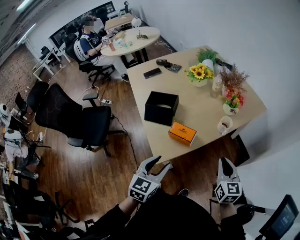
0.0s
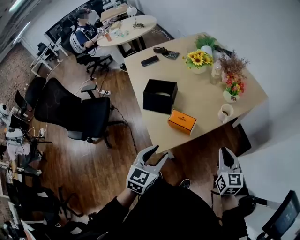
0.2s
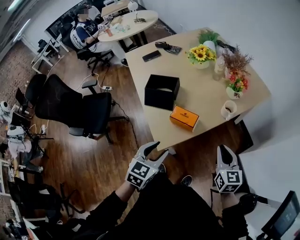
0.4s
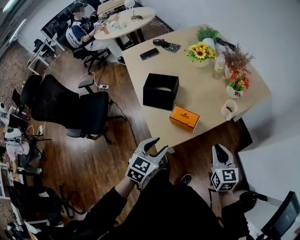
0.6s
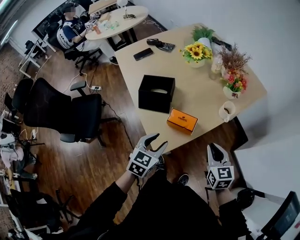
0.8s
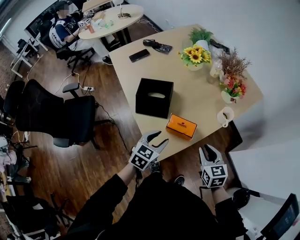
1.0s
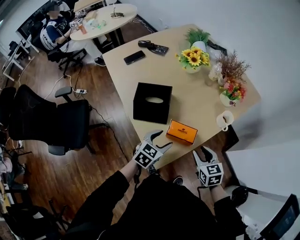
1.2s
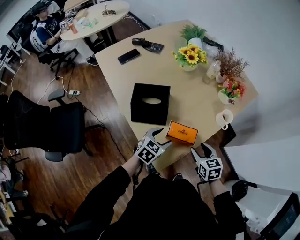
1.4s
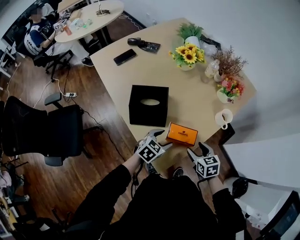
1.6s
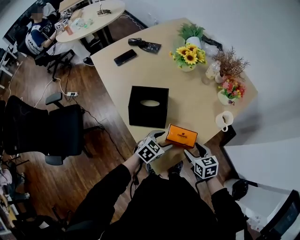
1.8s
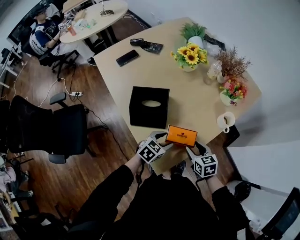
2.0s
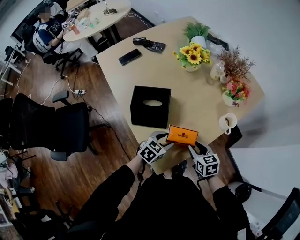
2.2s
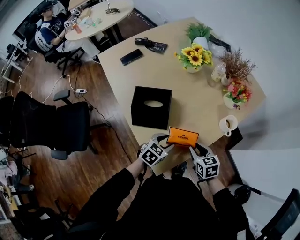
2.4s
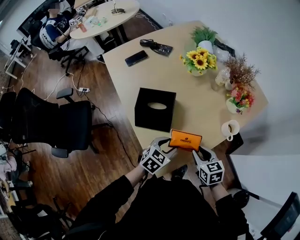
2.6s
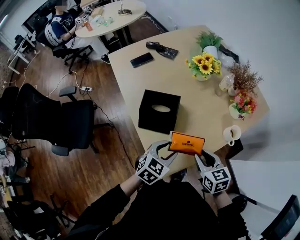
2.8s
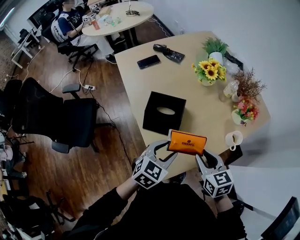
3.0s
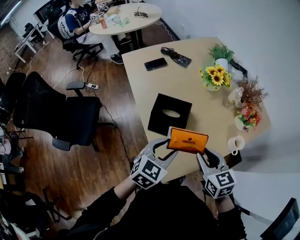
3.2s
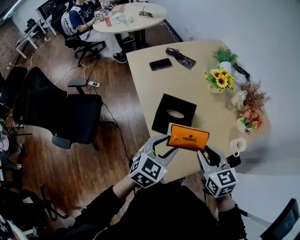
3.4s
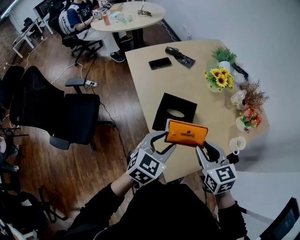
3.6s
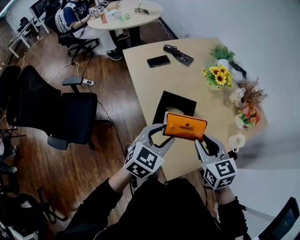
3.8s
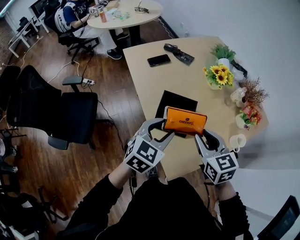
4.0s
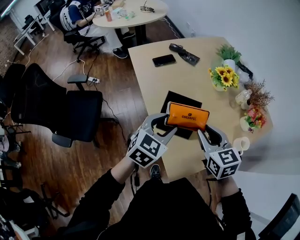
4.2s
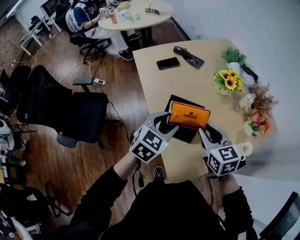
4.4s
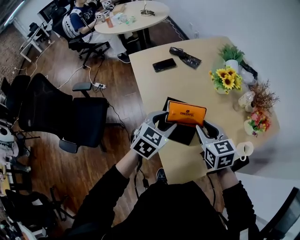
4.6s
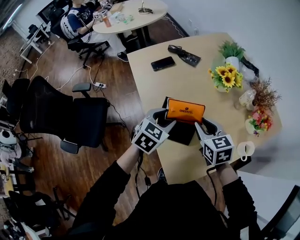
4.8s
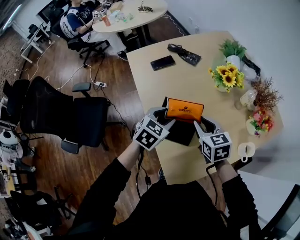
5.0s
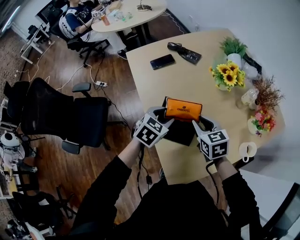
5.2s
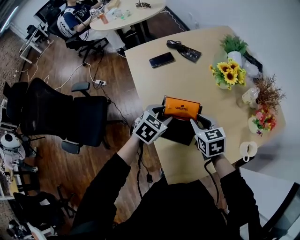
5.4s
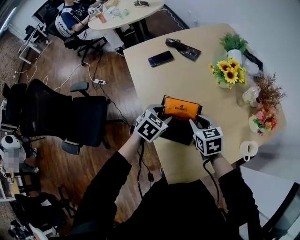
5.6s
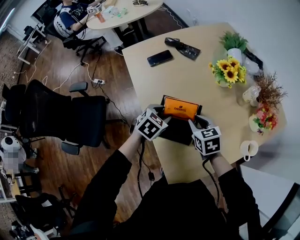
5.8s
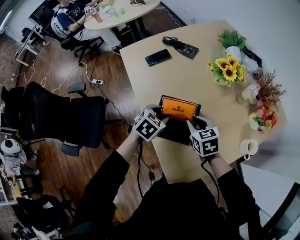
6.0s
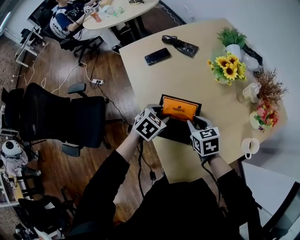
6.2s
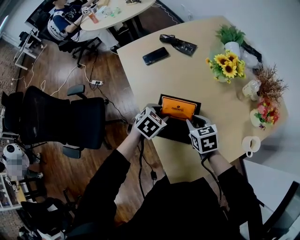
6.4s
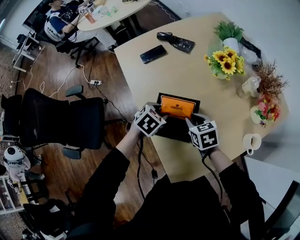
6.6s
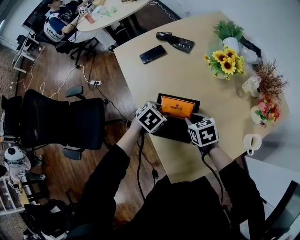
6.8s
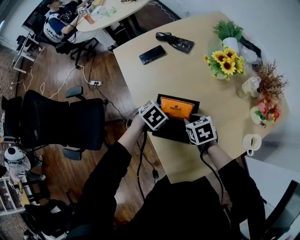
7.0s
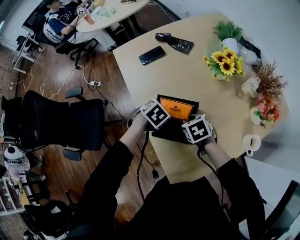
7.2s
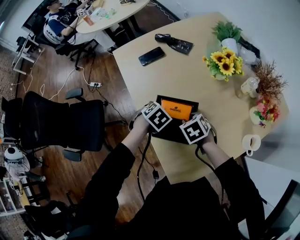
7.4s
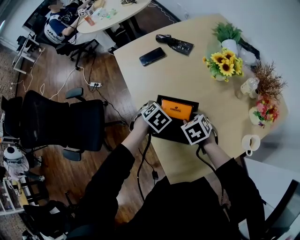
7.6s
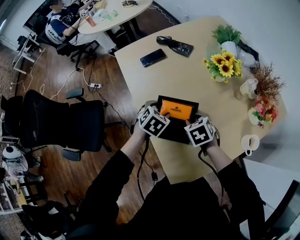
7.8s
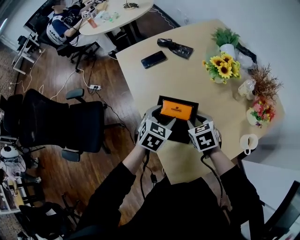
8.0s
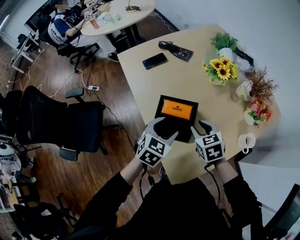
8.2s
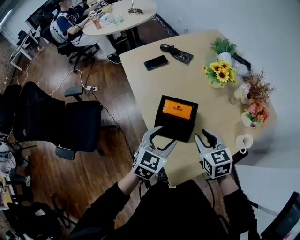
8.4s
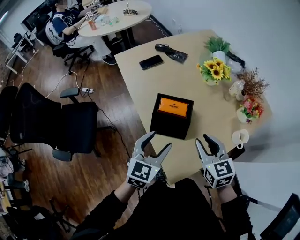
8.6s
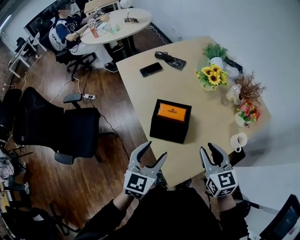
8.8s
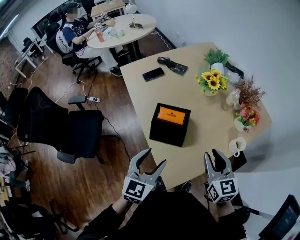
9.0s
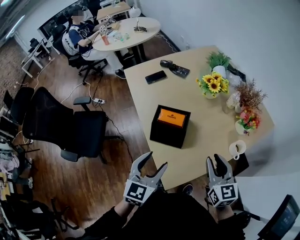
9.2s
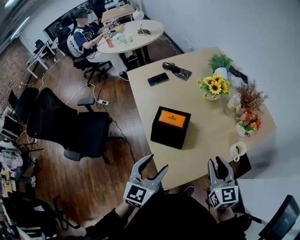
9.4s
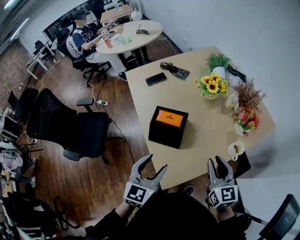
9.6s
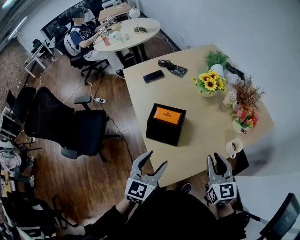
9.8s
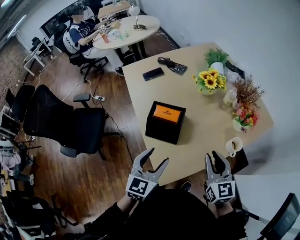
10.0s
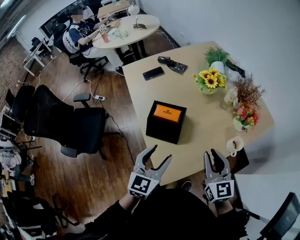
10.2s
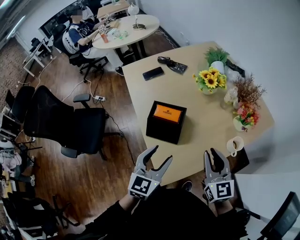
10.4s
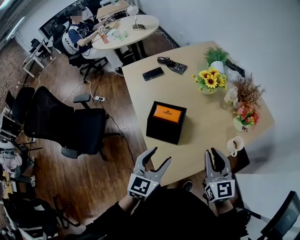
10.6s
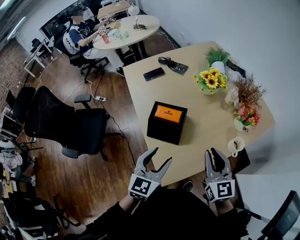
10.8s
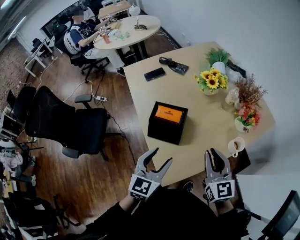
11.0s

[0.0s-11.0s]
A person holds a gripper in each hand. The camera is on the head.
0.0s to 1.6s: The right gripper is displaced to the left, downward and forward by approximately 25 cm, changes its angle by about 30 degrees, and opens up; the left gripper shifts approximately 30 cm forward and downward, turns by roughly 40 degrees, and opens its fingers.
1.6s to 3.2s: The right gripper moves upward and to the left, roughly 20 cm, rotates approximately 20 degrees, and closes up. Meanwhile the left gripper travels upward by approximately 20 cm, swivels some 20 degrees, and closes its fingers.
3.2s to 4.8s: The grippers both shift forward and to the left by about 15 cm.
4.8s to 6.2s: Both grippers move downward, roughly 10 cm.
6.2s to 7.8s: The right gripper changes its angle by approximately 20 degrees, while the left gripper opens up.
7.8s to 9.4s: The left gripper is displaced backward and upward by approximately 30 cm, and tilts its fingers some 40 degrees upward, while the right gripper moves backward, upward and to the right, some 30 cm, and tips its fingers upward by some 50 degrees.
9.4s to 11.0s: The grippers stay close to where they were, moving slightly.

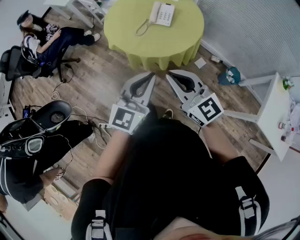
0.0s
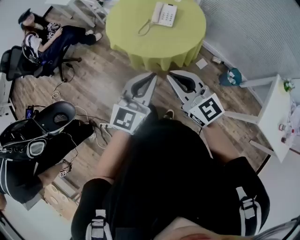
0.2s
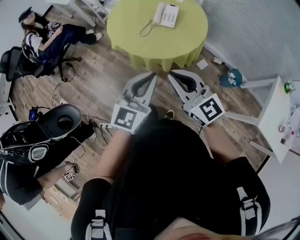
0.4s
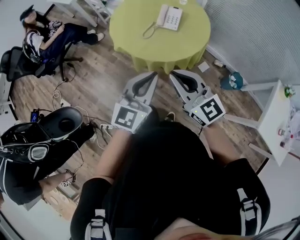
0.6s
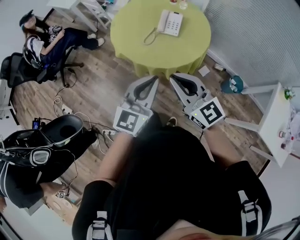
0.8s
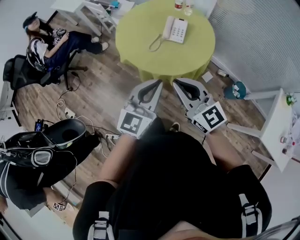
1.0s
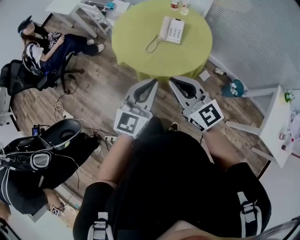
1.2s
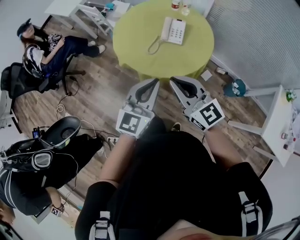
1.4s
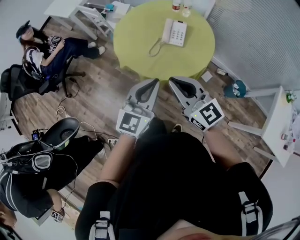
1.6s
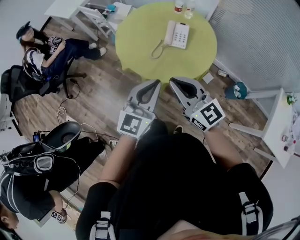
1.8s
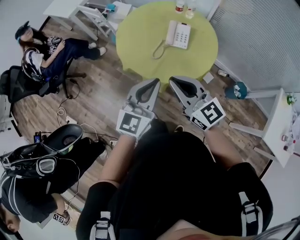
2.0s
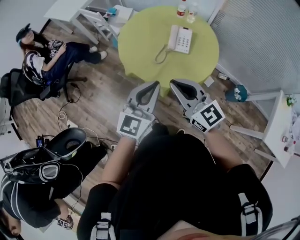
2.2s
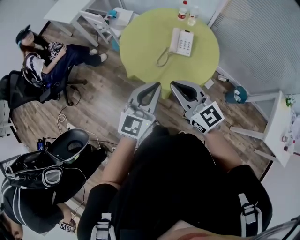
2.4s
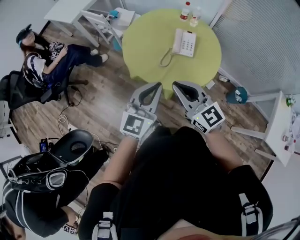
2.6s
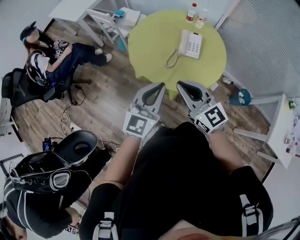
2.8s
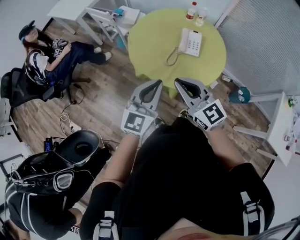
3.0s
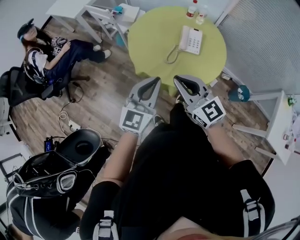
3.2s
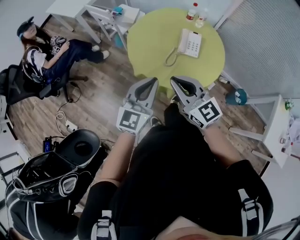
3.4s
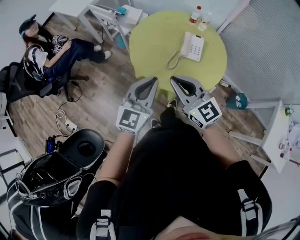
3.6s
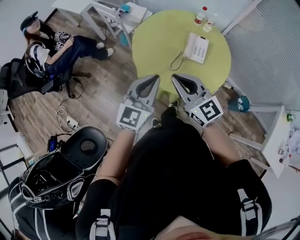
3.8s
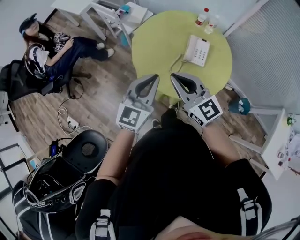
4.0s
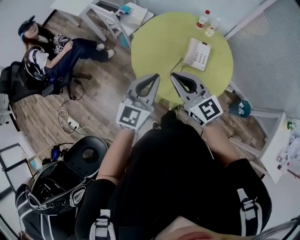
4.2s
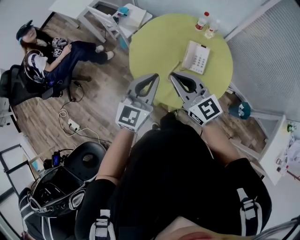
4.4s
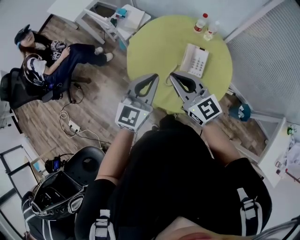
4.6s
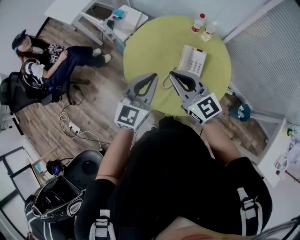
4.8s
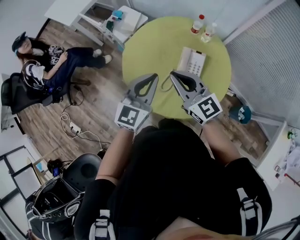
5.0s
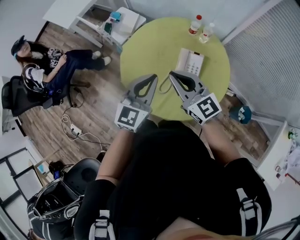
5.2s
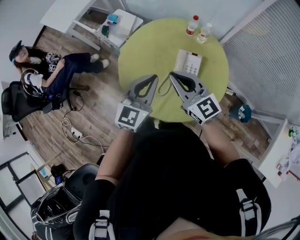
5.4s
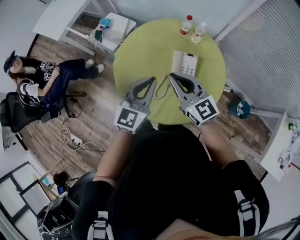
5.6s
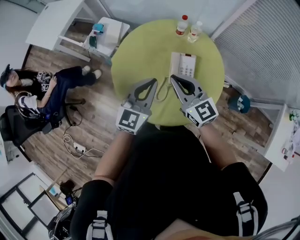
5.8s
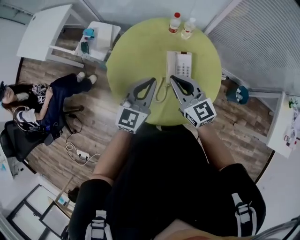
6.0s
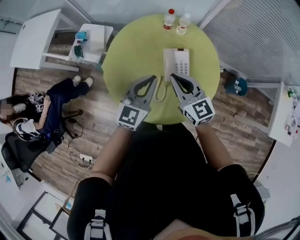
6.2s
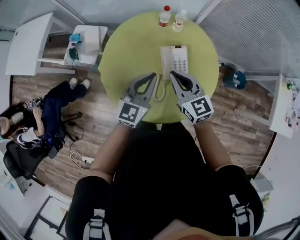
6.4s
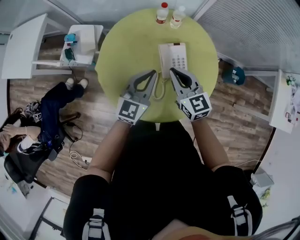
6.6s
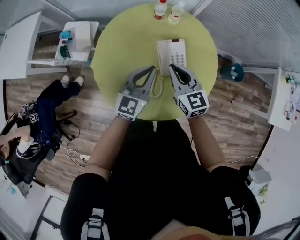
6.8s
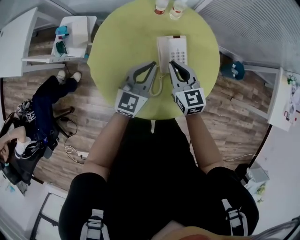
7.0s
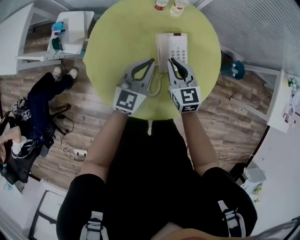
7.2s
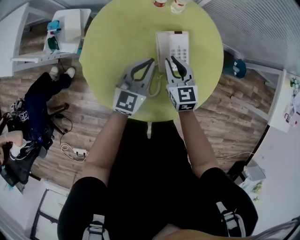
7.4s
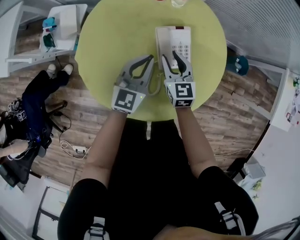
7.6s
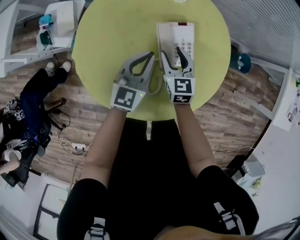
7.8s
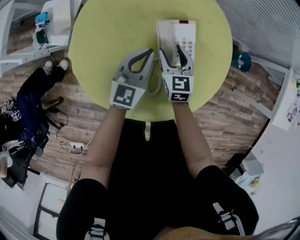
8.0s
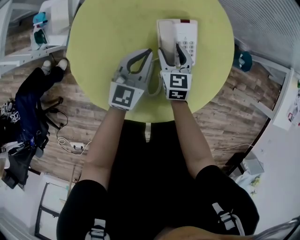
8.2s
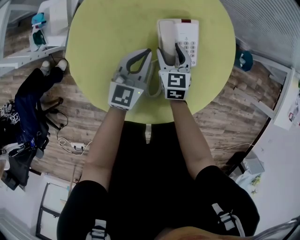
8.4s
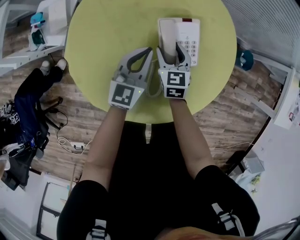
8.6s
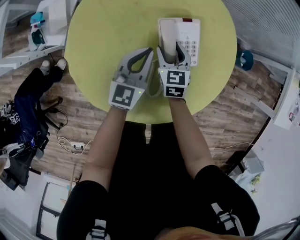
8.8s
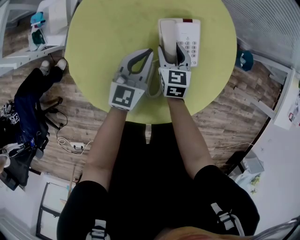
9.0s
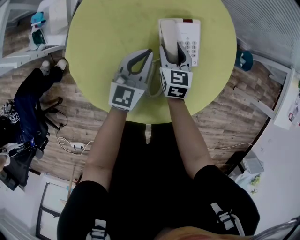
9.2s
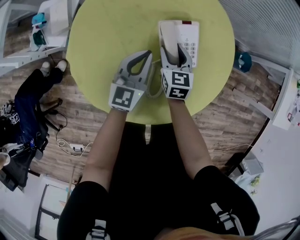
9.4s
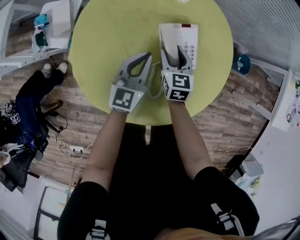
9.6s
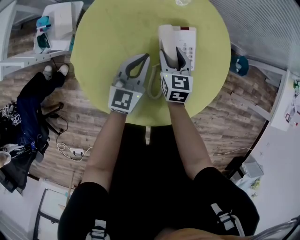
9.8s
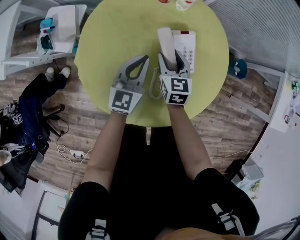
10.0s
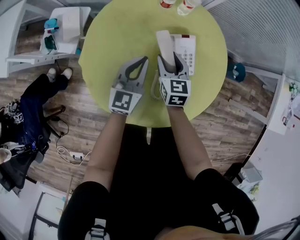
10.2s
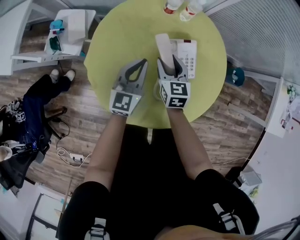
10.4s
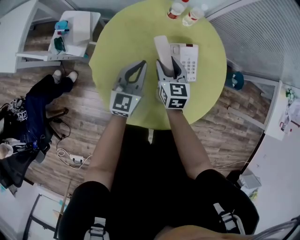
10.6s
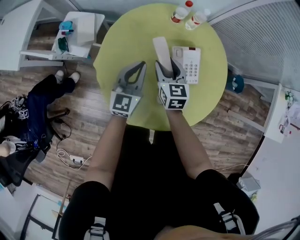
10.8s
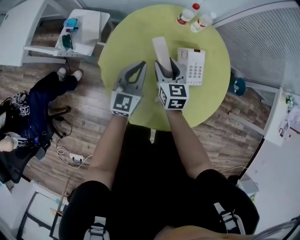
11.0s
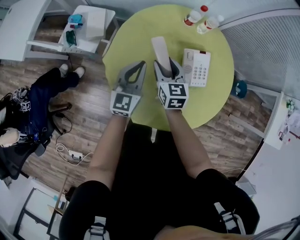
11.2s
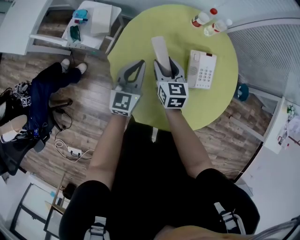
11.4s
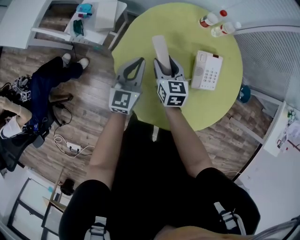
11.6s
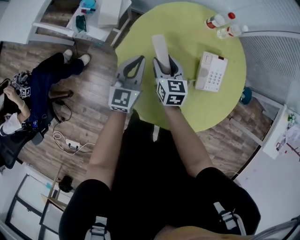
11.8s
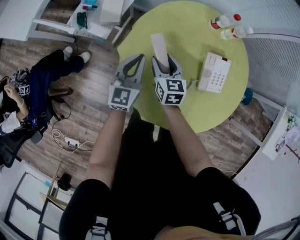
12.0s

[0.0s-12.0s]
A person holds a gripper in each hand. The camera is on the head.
0.0s to 1.6s: Both grippers move forward and to the left, roughly 15 cm.
1.6s to 3.0s: The grippers both shift to the left and forward by about 15 cm.
3.0s to 4.4s: The grippers both shift forward by some 15 cm.
4.4s to 6.0s: The right gripper shifts some 20 cm forward, to the right and downward, and turns by some 20 degrees. The left gripper moves forward and to the right, about 20 cm.
6.0s to 7.6s: The left gripper moves downward and forward, some 20 cm; the right gripper travels downward by approximately 25 cm, rotates roughly 30 degrees, and opens its fingers.
7.6s to 9.0s: The two grippers go approximately 10 cm downward.
9.0s to 10.4s: Both grippers move upward and to the left, approximately 10 cm.
10.4s to 12.0s: Both grippers move to the left, roughly 20 cm.

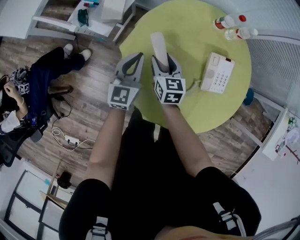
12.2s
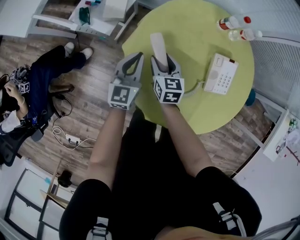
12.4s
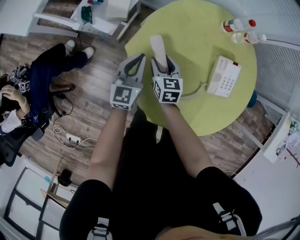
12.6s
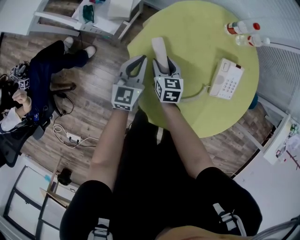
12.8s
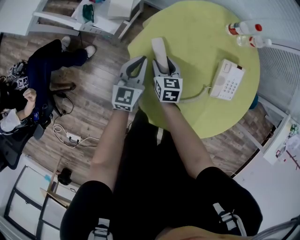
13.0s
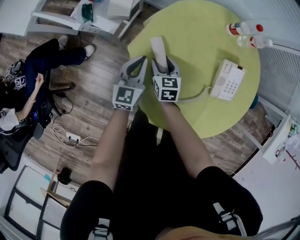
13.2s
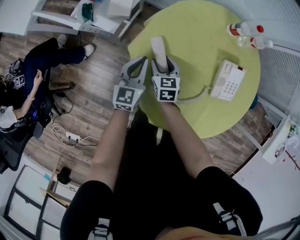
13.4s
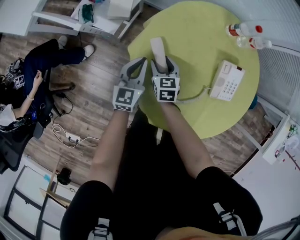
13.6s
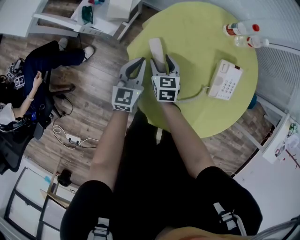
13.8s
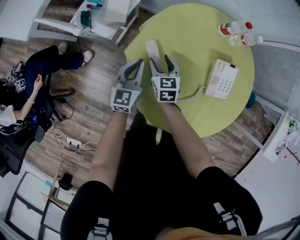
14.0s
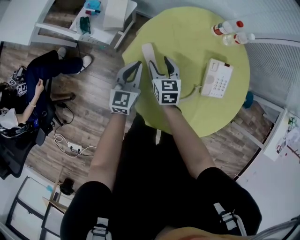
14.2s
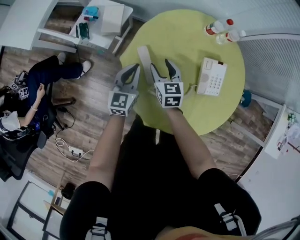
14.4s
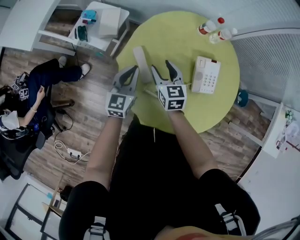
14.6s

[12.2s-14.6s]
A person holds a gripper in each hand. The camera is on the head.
12.2s to 13.4s: Both grippers move downward, roughly 10 cm.
13.4s to 14.6s: The left gripper is displaced upward by approximately 10 cm. The right gripper goes approximately 20 cm upward and to the right.
